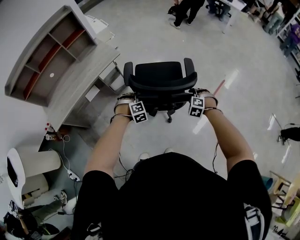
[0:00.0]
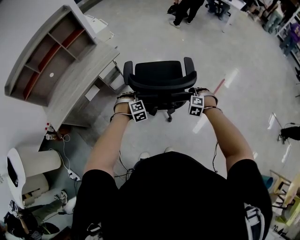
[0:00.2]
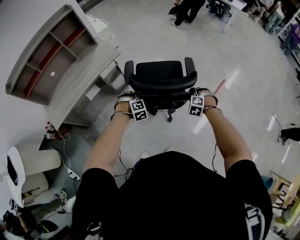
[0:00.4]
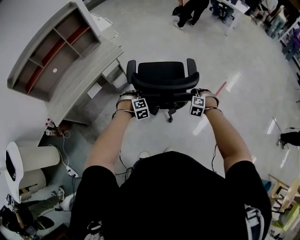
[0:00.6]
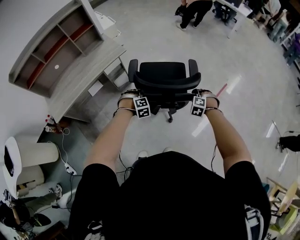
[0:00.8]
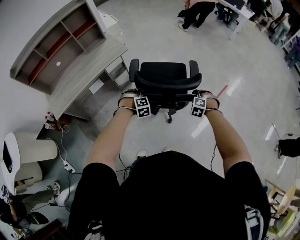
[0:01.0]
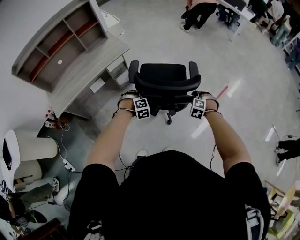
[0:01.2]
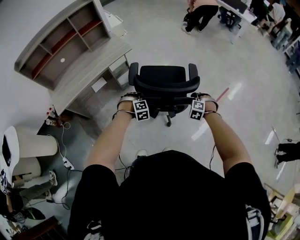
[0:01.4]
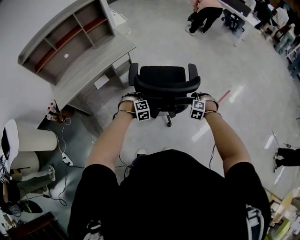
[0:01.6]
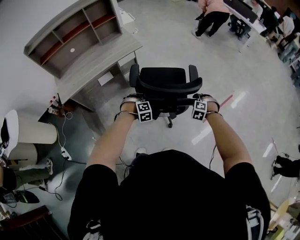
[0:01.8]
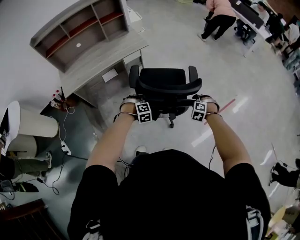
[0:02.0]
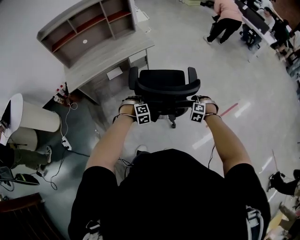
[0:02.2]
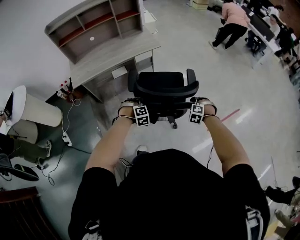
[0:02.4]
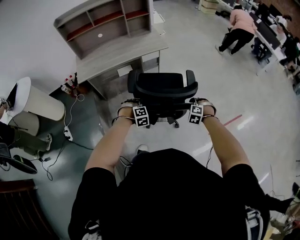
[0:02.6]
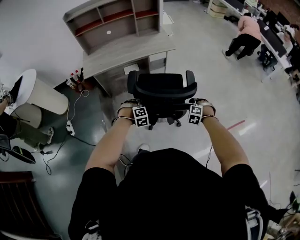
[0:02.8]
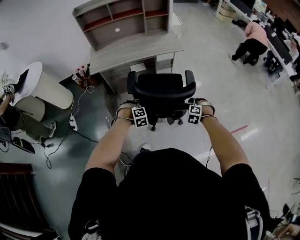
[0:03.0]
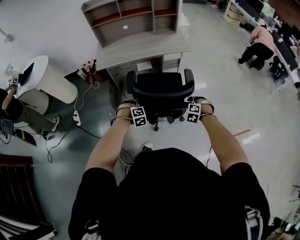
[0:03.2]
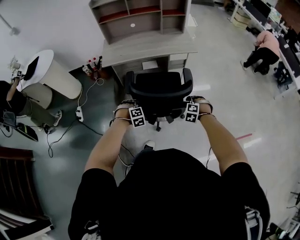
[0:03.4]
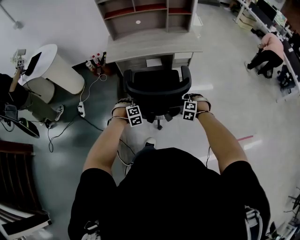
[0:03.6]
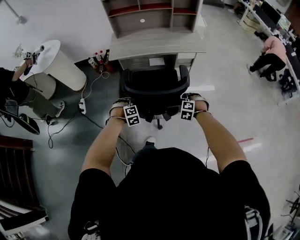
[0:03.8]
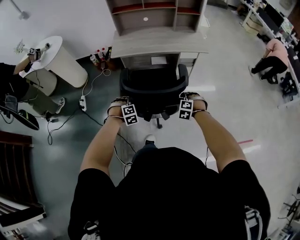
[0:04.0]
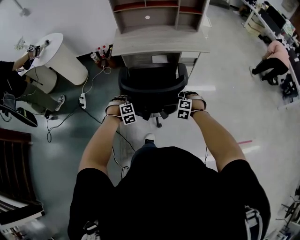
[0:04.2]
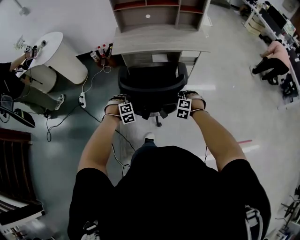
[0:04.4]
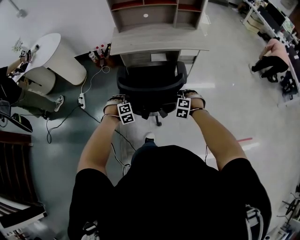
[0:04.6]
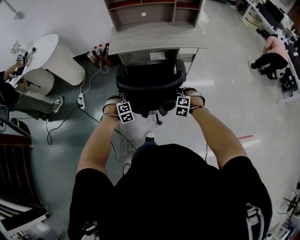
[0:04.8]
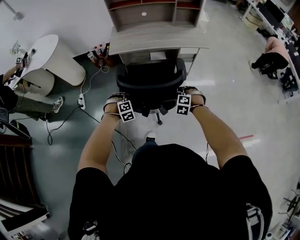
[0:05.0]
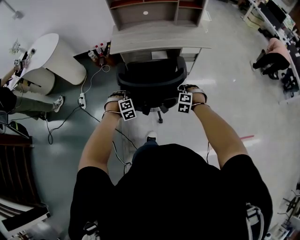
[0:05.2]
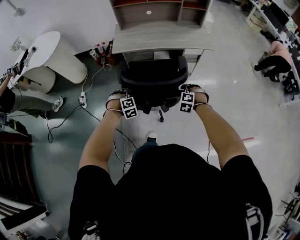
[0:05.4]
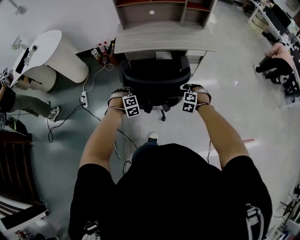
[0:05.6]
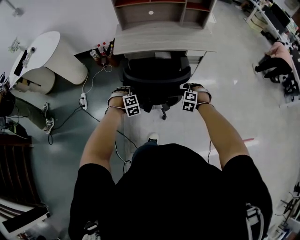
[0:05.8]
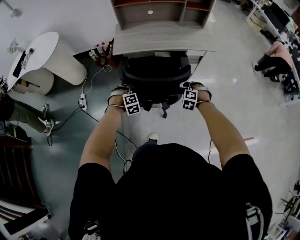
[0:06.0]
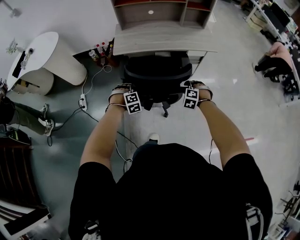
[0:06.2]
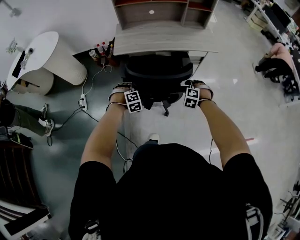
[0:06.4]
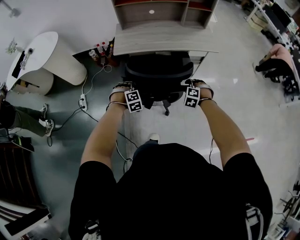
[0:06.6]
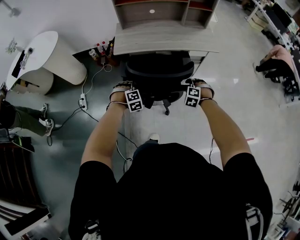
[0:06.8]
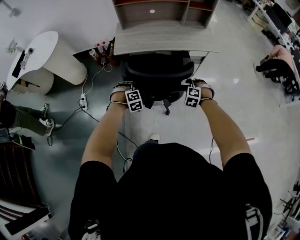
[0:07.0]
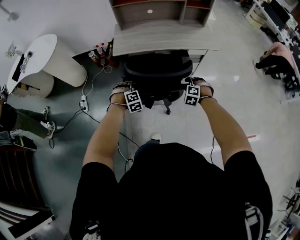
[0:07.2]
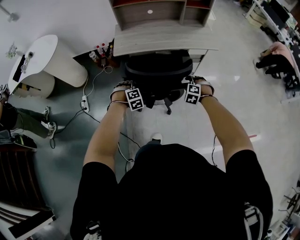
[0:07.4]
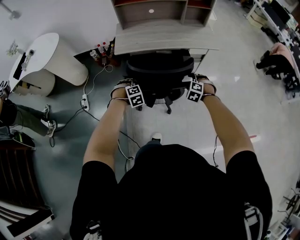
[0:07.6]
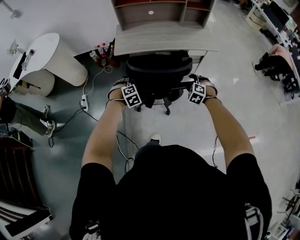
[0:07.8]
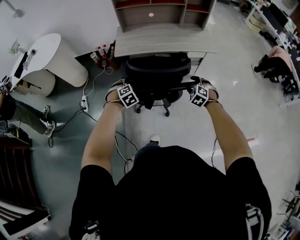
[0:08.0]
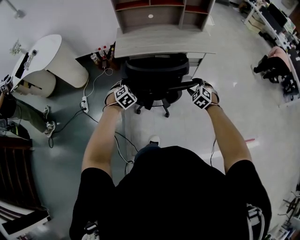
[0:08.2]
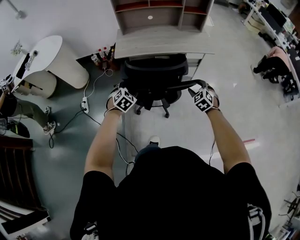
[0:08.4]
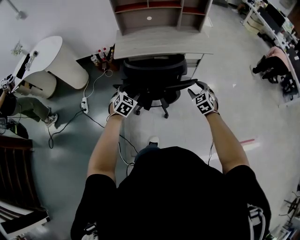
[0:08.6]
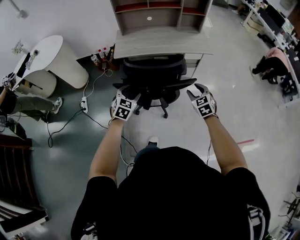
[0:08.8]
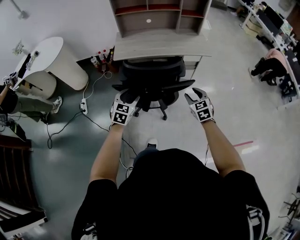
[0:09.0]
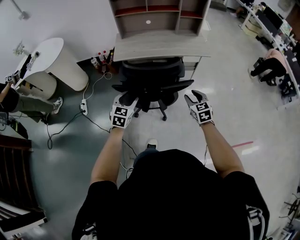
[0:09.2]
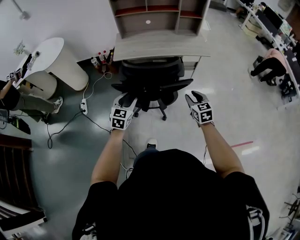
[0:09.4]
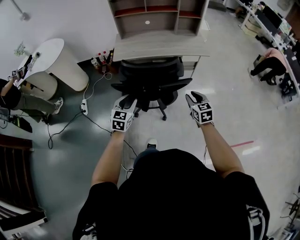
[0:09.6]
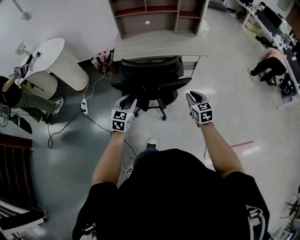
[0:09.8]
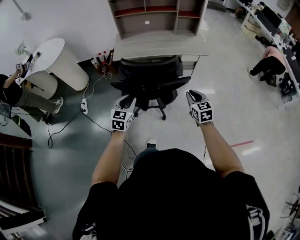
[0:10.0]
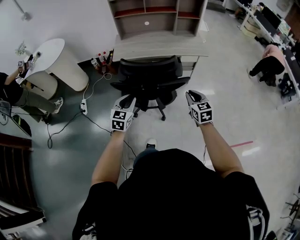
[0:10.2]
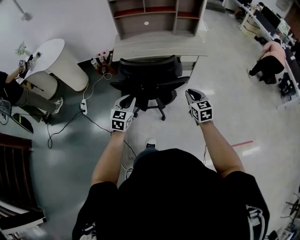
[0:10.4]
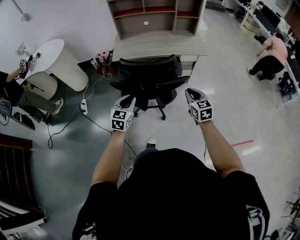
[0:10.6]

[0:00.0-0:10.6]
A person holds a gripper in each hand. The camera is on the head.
0.0 to 1.6 s: Both grippers move backward, approximately 10 cm.
1.6 to 3.0 s: The right gripper heads to the left, covering roughly 20 cm, and swivels some 30 degrees; the left gripper shifts about 25 cm to the left and backward, and rotates approximately 20 degrees.
3.0 to 4.6 s: The two grippers go about 20 cm to the left.
4.6 to 6.0 s: Both grippers move forward, approximately 10 cm.
6.0 to 7.6 s: The right gripper opens its fingers.
7.6 to 9.0 s: The grippers both shift upward and backward by approximately 15 cm. The right gripper rolls clockwise, seen from behind, by about 50 degrees, while the left gripper points its fingers approximately 40 degrees further upward.
9.0 to 10.6 s: The left gripper shifts approximately 5 cm backward, and closes up; the right gripper ends up some 5 cm from where it was, and closes up.

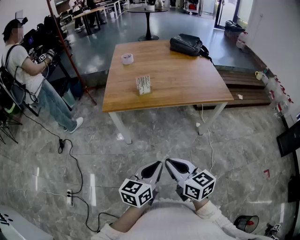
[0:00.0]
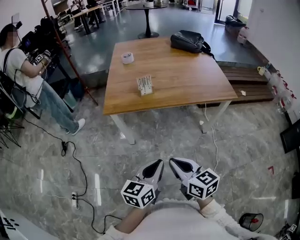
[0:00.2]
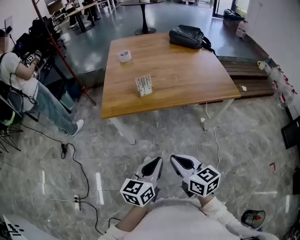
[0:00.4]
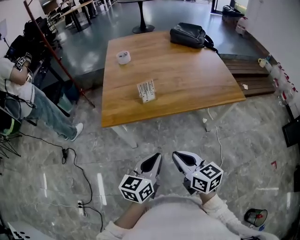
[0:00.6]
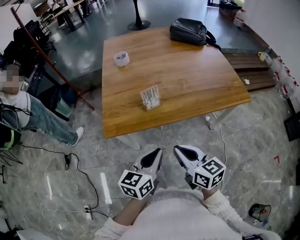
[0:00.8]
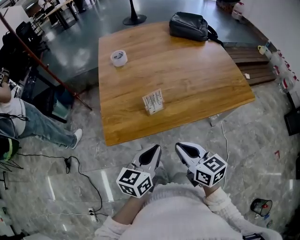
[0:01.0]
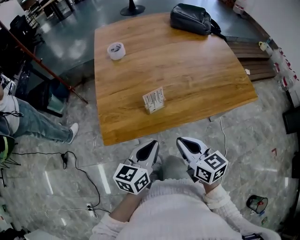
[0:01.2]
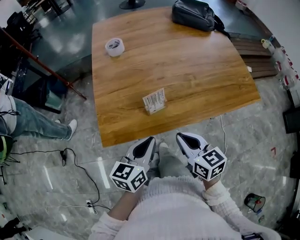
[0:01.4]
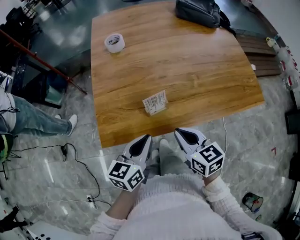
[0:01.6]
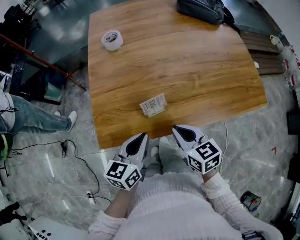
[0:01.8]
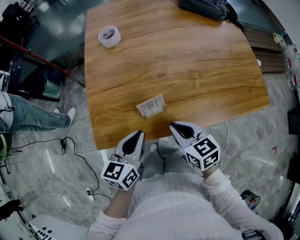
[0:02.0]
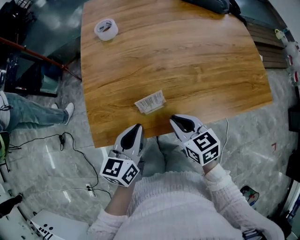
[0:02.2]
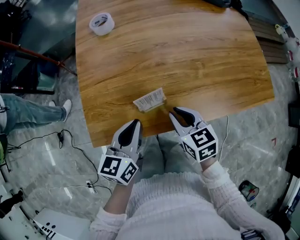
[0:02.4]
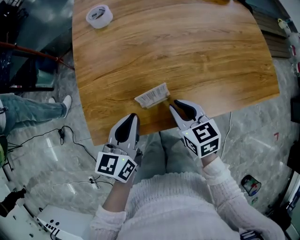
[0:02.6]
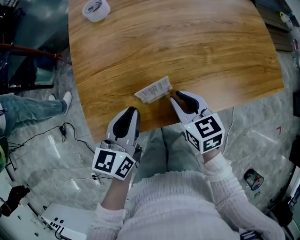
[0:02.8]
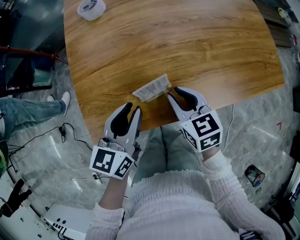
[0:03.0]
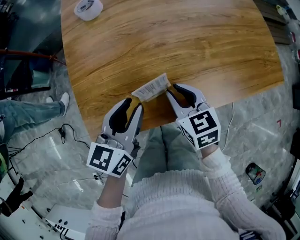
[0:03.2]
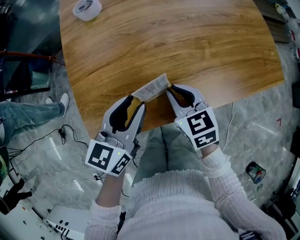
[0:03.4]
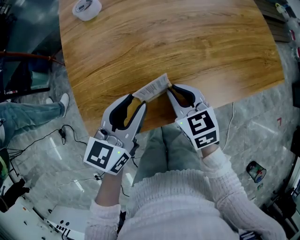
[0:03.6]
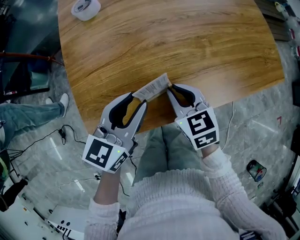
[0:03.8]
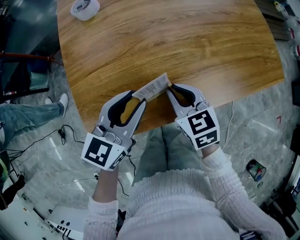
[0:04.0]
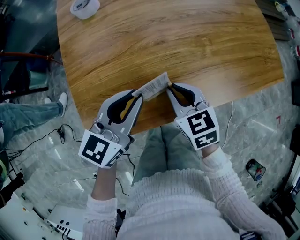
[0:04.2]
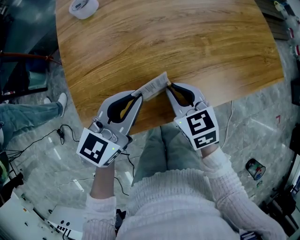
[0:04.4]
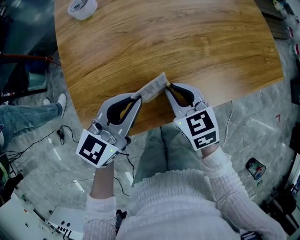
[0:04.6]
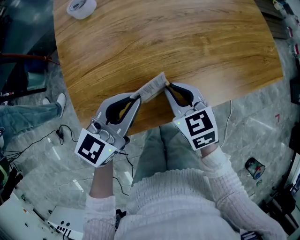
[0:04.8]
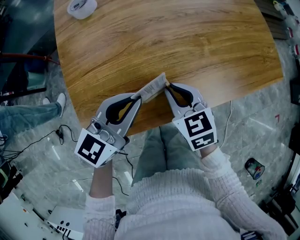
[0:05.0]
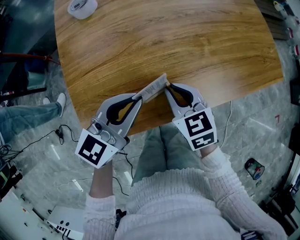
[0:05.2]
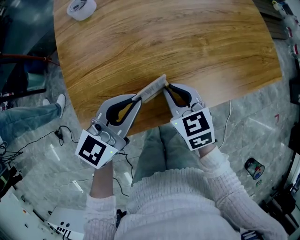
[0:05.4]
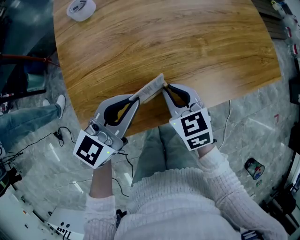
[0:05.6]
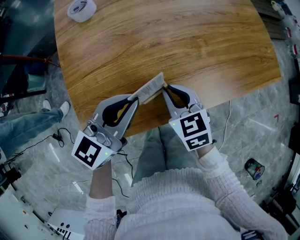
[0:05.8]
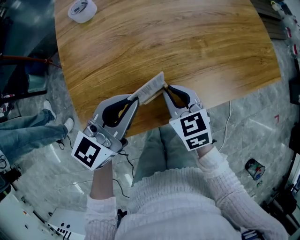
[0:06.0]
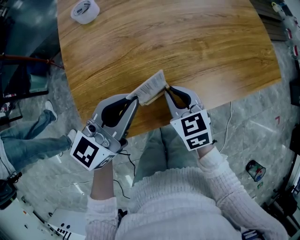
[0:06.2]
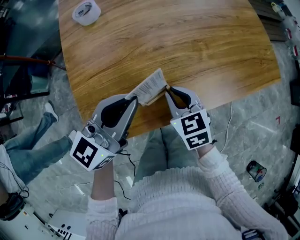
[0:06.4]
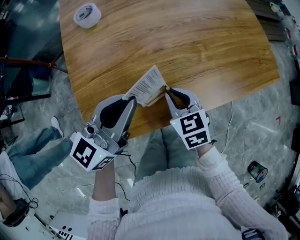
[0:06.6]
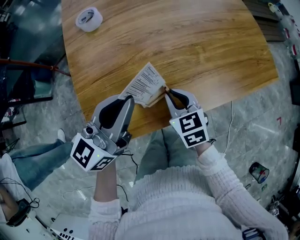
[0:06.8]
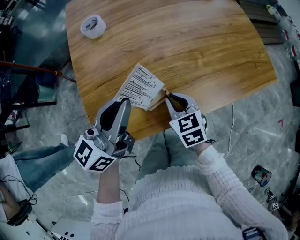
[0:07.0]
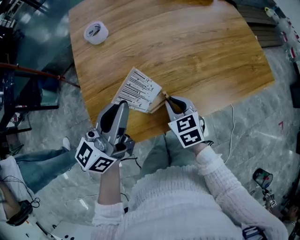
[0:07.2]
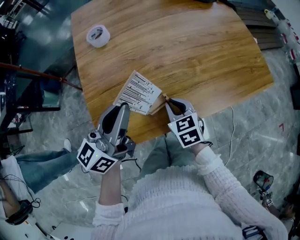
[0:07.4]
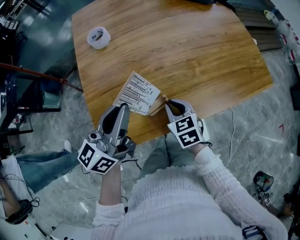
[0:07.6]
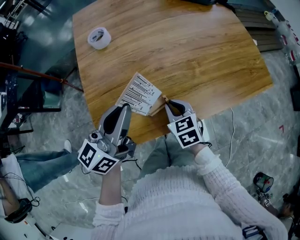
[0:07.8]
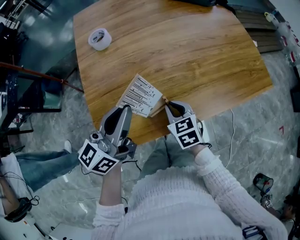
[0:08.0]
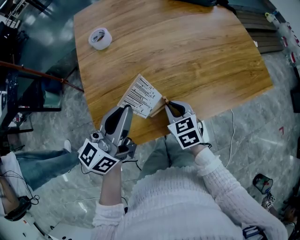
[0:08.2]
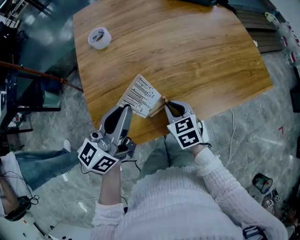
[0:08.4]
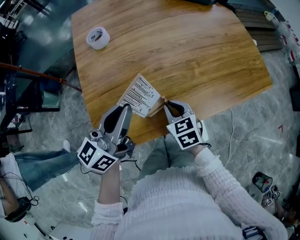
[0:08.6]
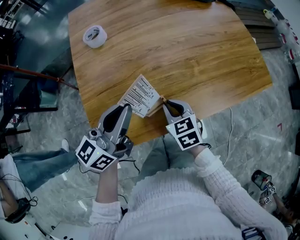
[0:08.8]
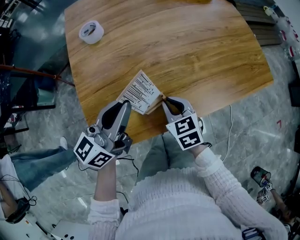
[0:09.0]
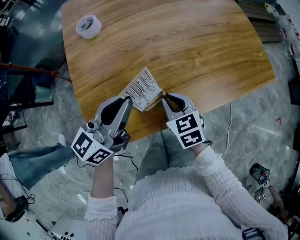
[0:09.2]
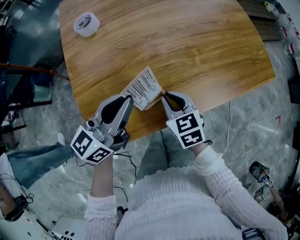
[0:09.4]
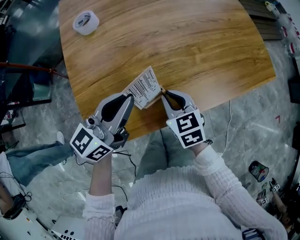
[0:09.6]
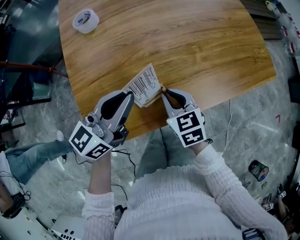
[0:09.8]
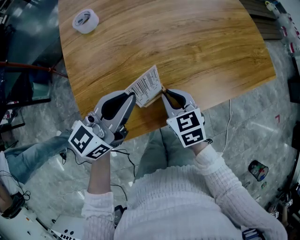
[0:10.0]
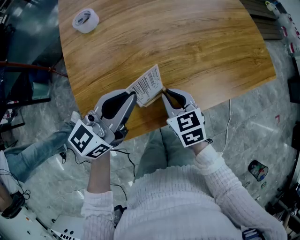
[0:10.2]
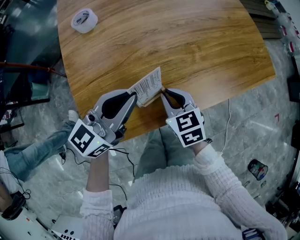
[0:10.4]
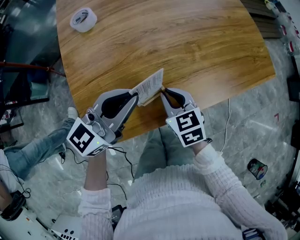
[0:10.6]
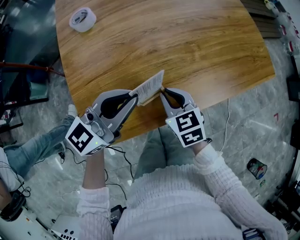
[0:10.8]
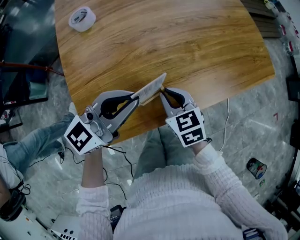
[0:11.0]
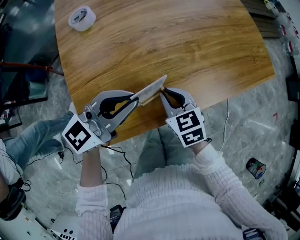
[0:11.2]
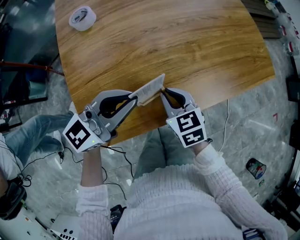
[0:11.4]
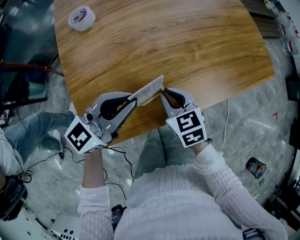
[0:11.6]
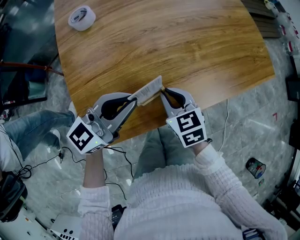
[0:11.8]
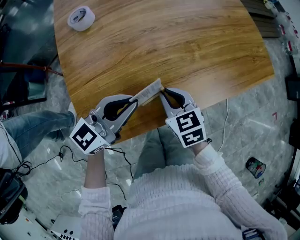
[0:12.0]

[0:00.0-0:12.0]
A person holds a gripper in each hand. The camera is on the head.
0.0 to 1.6 s: The two grippers travel together, forward, about 40 cm.
1.6 to 3.0 s: The left gripper is displaced forward by about 10 cm; the right gripper shifts approximately 15 cm forward and downward, and opens its fingers.
3.0 to 4.4 s: The left gripper turns by approximately 20 degrees.
4.4 to 6.0 s: There are only small adjustments of the grippers.
6.0 to 7.6 s: The left gripper goes about 10 cm upward, and swivels about 20 degrees.
7.6 to 9.0 s: The grippers stay close to where they were, moving slightly.
9.0 to 10.4 s: There are only small adjustments of the grippers.
10.4 to 12.0 s: There are only small adjustments of the grippers.

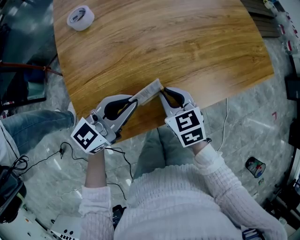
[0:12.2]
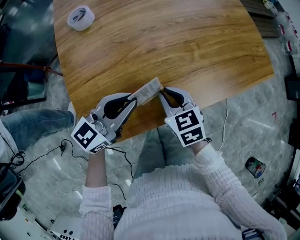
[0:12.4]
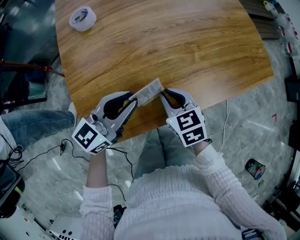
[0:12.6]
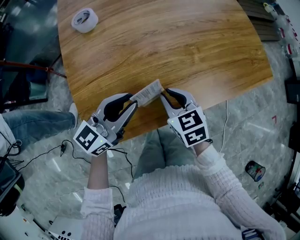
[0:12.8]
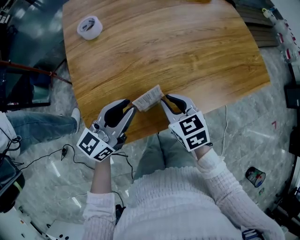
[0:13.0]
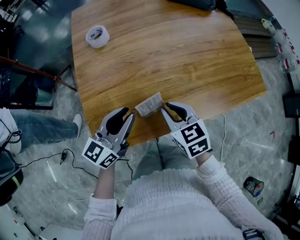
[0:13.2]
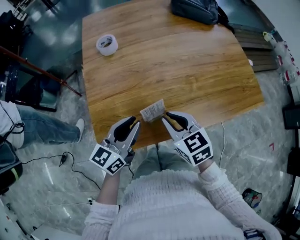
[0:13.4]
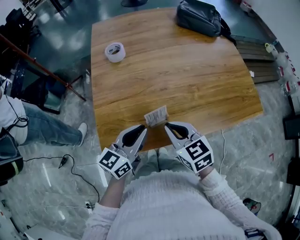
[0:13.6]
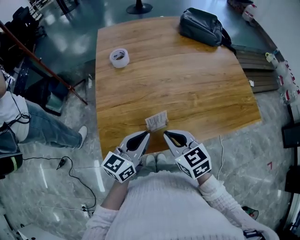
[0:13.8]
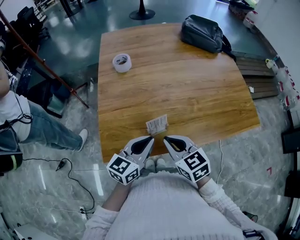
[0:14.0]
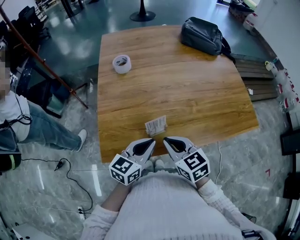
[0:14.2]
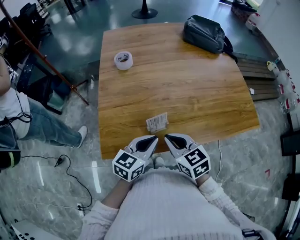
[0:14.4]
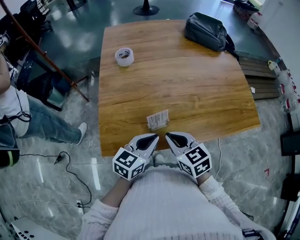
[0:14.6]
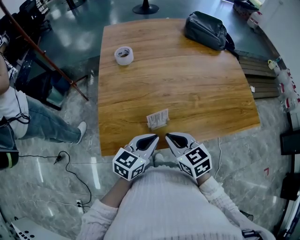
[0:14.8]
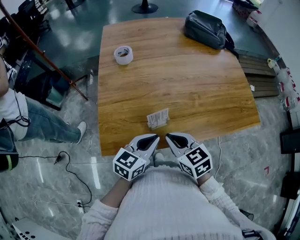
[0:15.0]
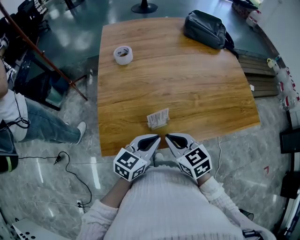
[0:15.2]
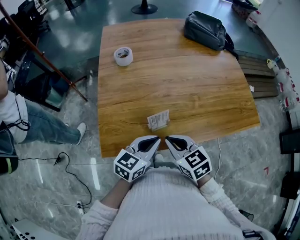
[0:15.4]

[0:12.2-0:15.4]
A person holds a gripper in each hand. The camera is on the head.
12.2 to 13.8 s: The right gripper moves upward and backward, roughly 15 cm, while the left gripper shifts by about 5 cm, and swivels some 30 degrees.
13.8 to 15.4 s: The left gripper moves some 5 cm.
